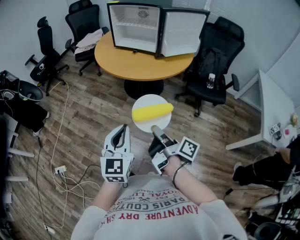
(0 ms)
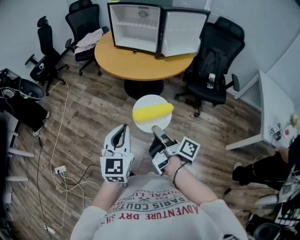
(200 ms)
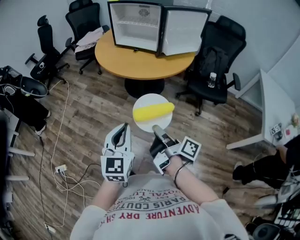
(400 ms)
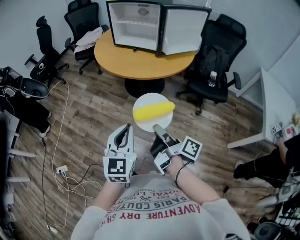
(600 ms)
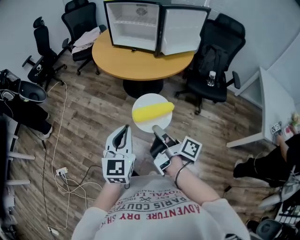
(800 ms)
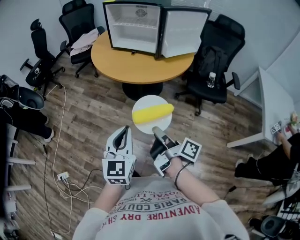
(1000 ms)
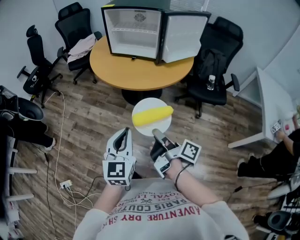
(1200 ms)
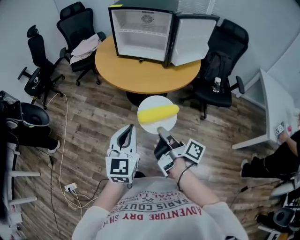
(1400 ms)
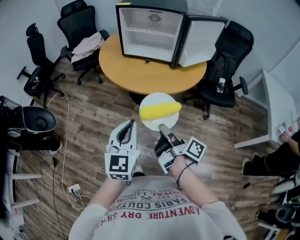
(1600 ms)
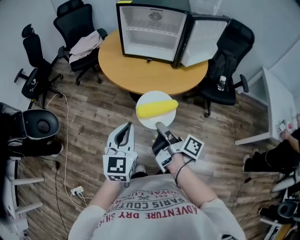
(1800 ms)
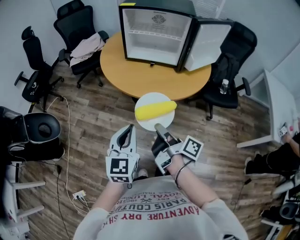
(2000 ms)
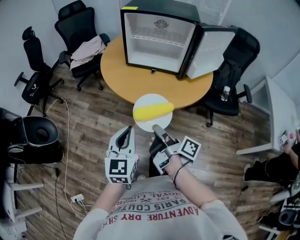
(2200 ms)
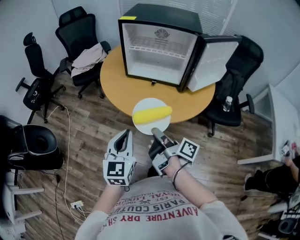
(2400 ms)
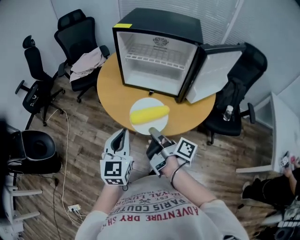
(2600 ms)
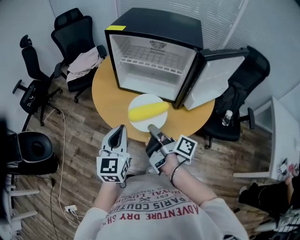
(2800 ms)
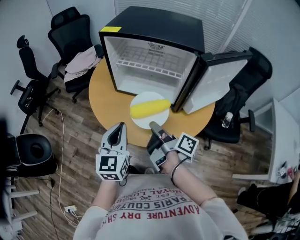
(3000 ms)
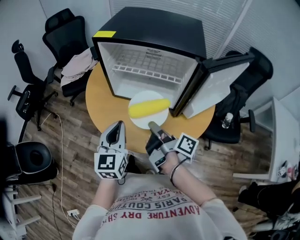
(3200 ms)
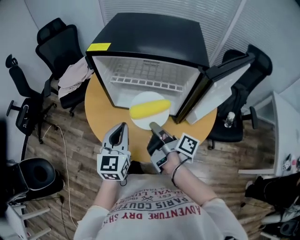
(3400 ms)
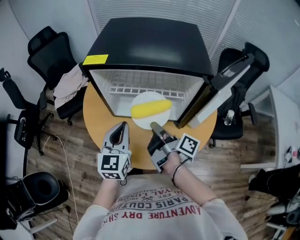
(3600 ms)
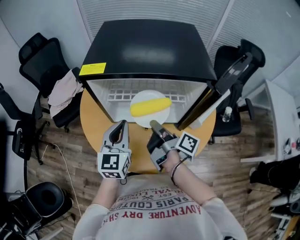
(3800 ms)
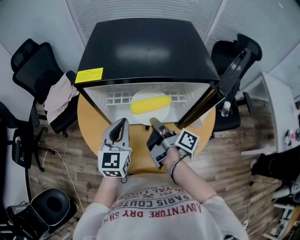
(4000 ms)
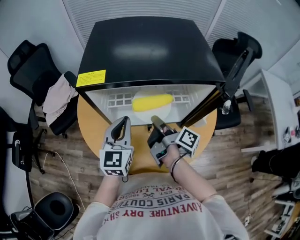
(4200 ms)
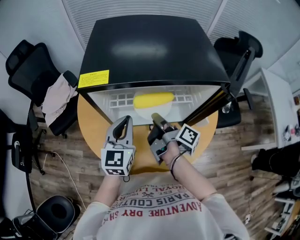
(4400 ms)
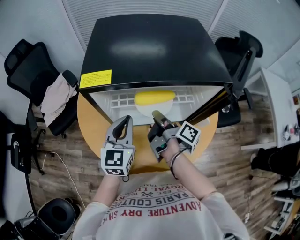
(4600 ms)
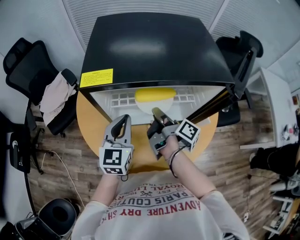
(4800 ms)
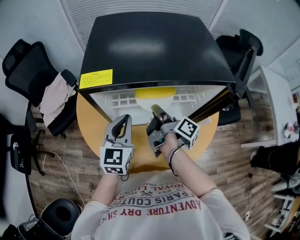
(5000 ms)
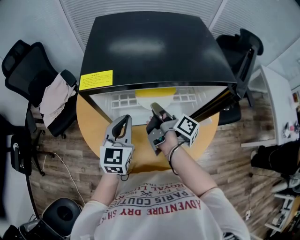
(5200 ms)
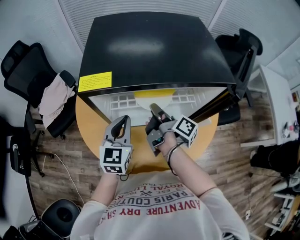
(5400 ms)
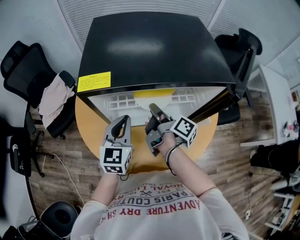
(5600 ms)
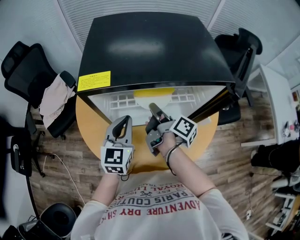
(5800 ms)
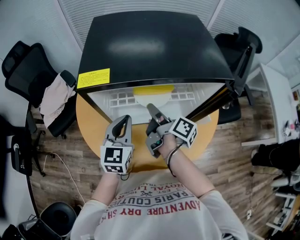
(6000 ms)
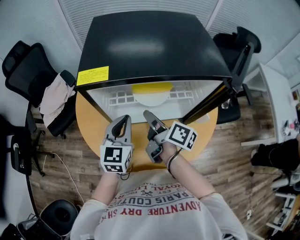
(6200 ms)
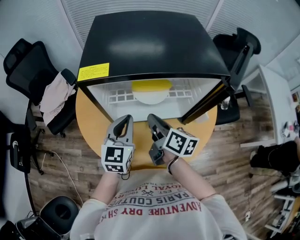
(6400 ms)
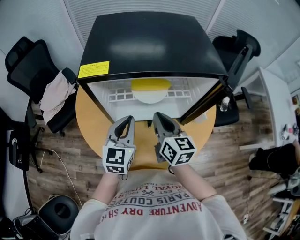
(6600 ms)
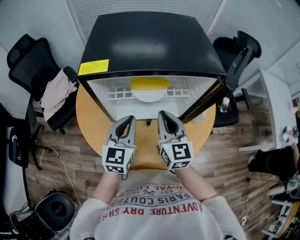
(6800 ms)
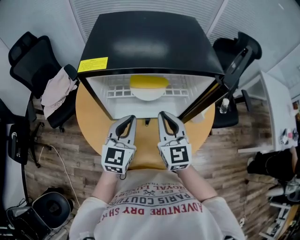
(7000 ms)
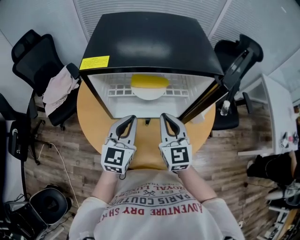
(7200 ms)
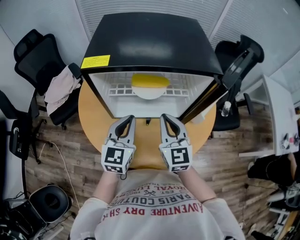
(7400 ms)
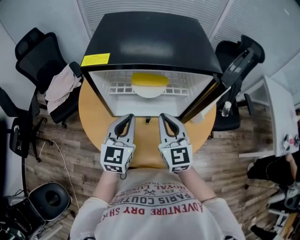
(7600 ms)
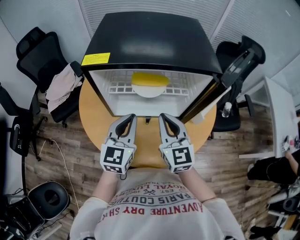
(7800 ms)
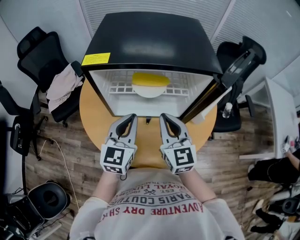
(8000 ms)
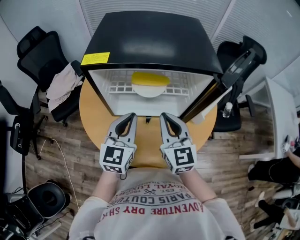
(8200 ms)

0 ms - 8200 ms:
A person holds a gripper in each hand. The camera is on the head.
0 ms - 1600 ms: The left gripper moves approximately 20 cm.
1600 ms - 3200 ms: The left gripper ends up some 40 cm from where it was.
3200 ms - 5000 ms: The left gripper changes place by roughly 20 cm, and swivels some 20 degrees.
6600 ms - 8200 ms: The left gripper changes place by about 5 cm.

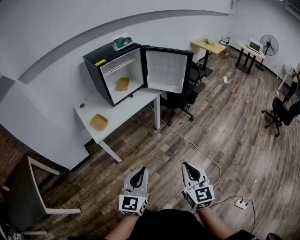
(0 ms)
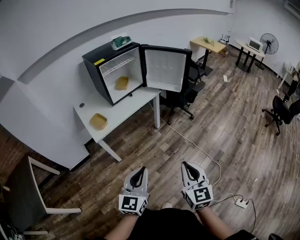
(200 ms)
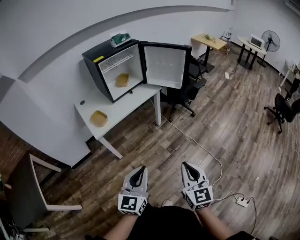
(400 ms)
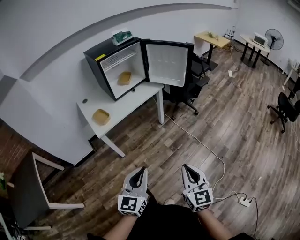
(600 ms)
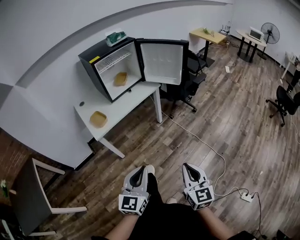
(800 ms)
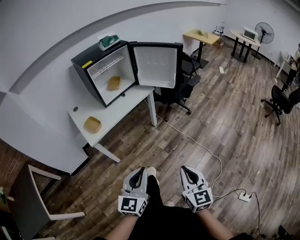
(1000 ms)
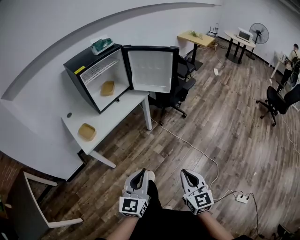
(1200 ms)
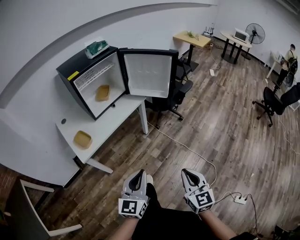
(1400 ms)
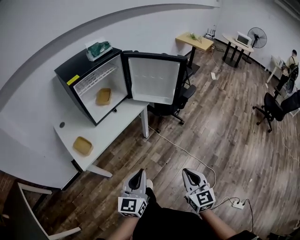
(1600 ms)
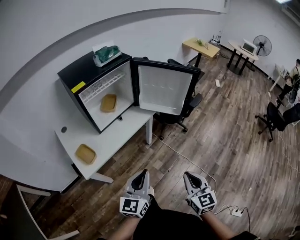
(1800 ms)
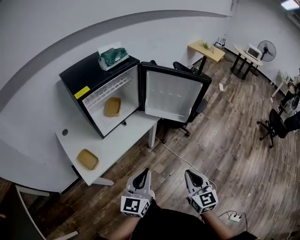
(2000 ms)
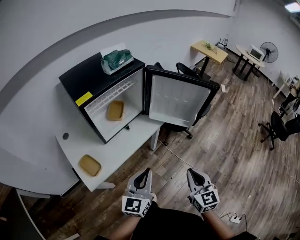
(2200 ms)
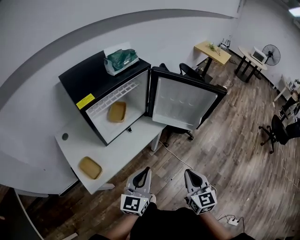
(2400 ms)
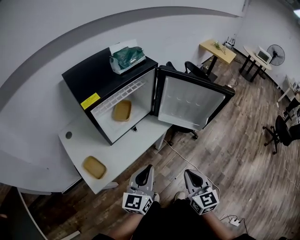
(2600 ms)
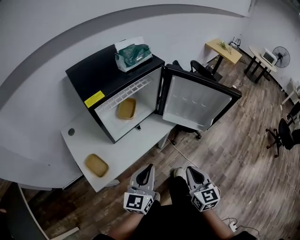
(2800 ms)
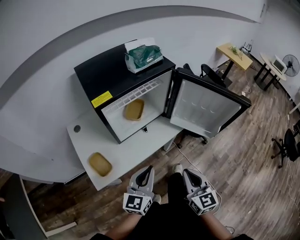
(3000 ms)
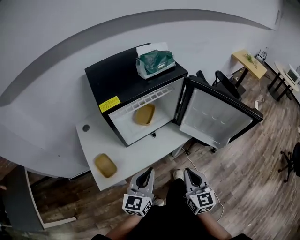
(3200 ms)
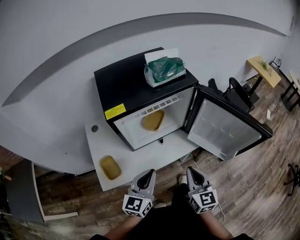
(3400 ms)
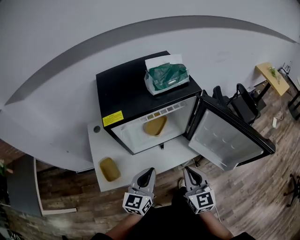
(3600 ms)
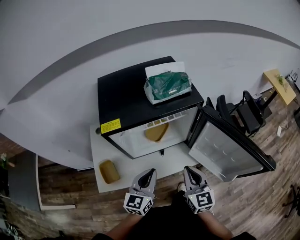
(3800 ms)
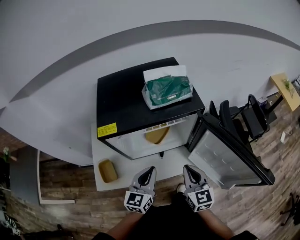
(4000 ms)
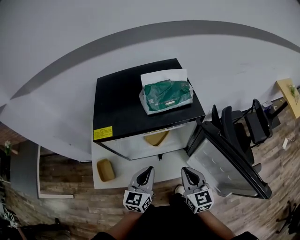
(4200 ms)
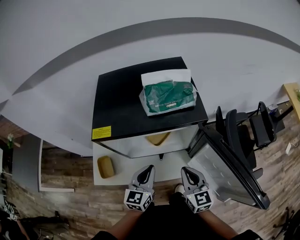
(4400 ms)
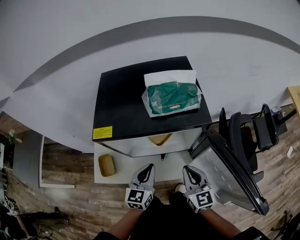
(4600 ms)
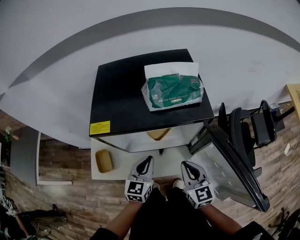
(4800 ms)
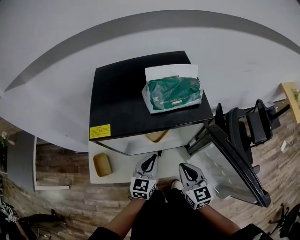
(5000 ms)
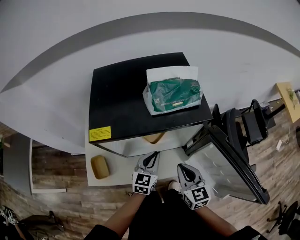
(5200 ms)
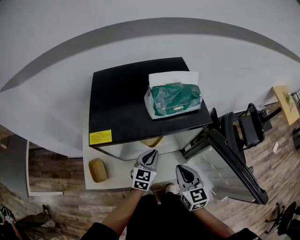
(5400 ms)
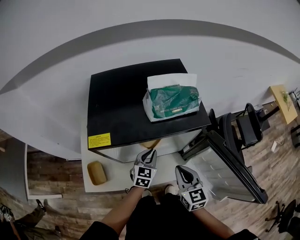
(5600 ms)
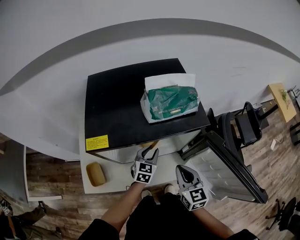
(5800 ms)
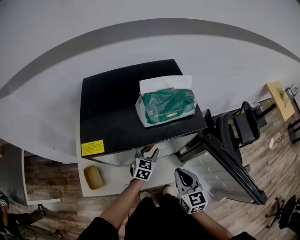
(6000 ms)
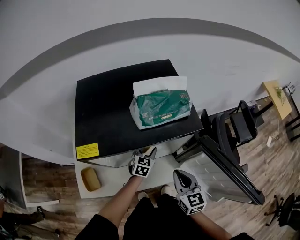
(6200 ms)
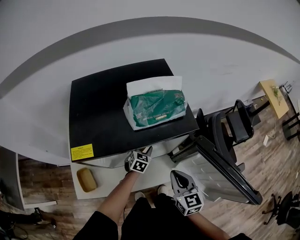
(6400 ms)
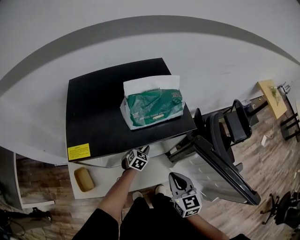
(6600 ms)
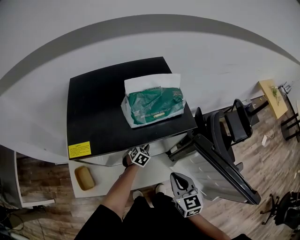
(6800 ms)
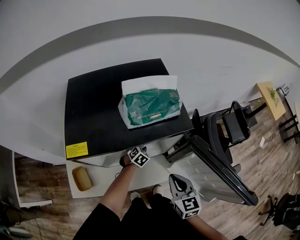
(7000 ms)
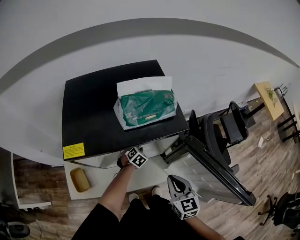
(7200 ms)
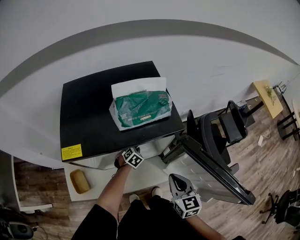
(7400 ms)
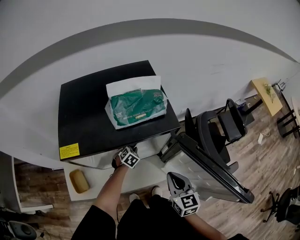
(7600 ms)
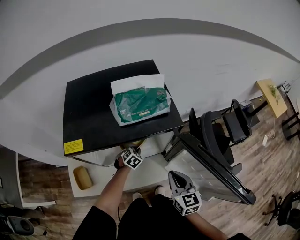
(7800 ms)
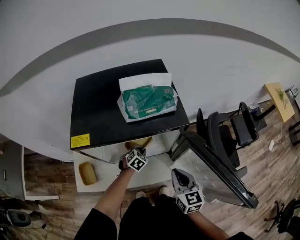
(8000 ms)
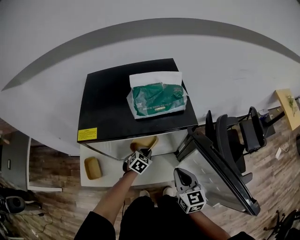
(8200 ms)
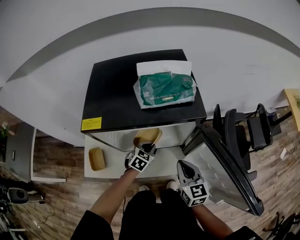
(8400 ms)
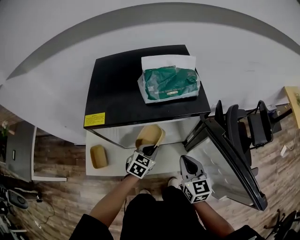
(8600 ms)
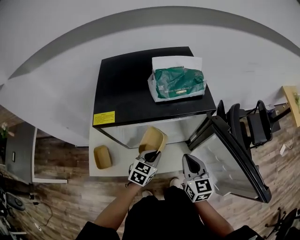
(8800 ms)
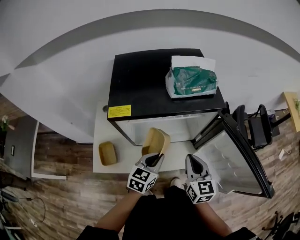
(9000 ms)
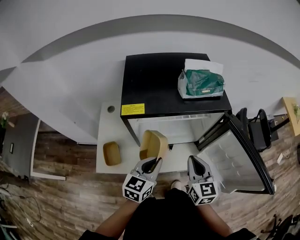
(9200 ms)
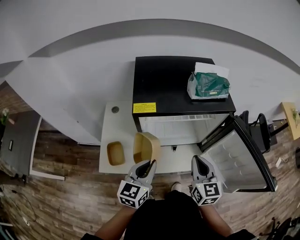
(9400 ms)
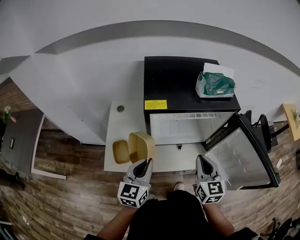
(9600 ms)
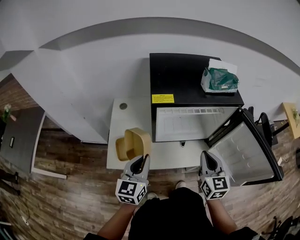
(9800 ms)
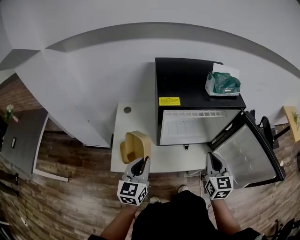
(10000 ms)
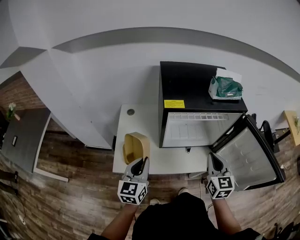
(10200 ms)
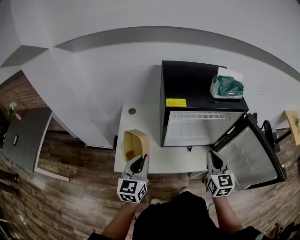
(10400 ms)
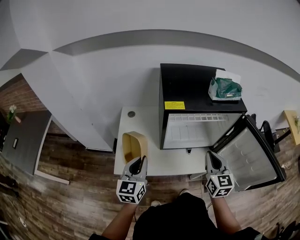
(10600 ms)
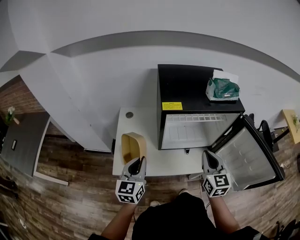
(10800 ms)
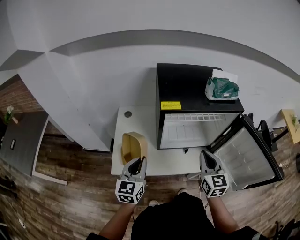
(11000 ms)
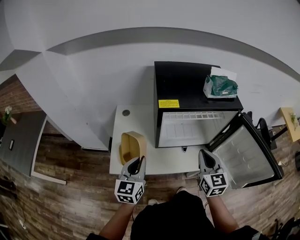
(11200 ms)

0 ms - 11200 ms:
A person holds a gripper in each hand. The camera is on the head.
0 ms - 1600 ms: The grippers both shift forward by some 20 cm.
1600 ms - 3200 ms: The grippers both shift forward and to the left by approximately 35 cm.
3200 ms - 4800 ms: The left gripper ends up some 20 cm from where it was, and rotates roughly 30 degrees. The right gripper changes place by about 25 cm, and rotates some 30 degrees.
4800 ms - 6400 ms: The left gripper moves downward and forward, roughly 25 cm, rotates some 30 degrees, and opens.
6400 ms - 8000 ms: The left gripper closes.
8000 ms - 9600 ms: The left gripper heads upward, backward and to the left, covering some 40 cm, and tilts its fingers some 40 degrees upward, while the right gripper shifts some 15 cm to the left, upward and backward.
9600 ms - 11200 ms: The left gripper goes some 10 cm to the left.

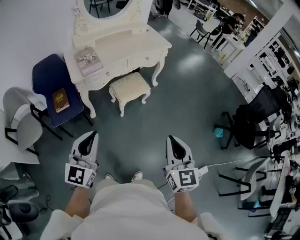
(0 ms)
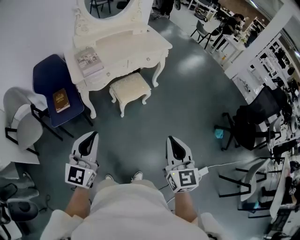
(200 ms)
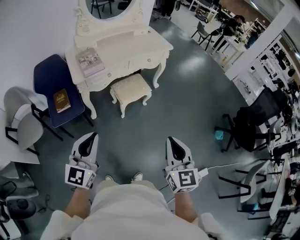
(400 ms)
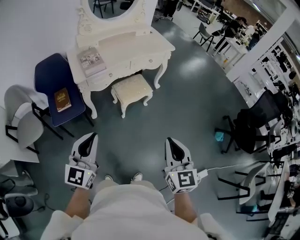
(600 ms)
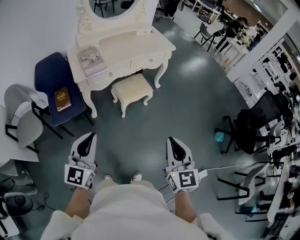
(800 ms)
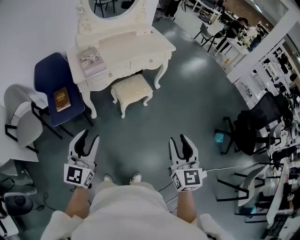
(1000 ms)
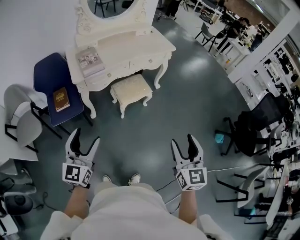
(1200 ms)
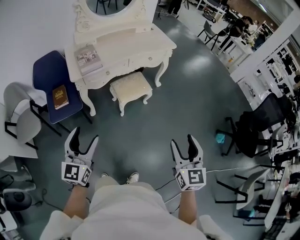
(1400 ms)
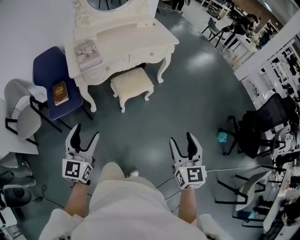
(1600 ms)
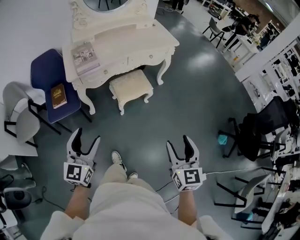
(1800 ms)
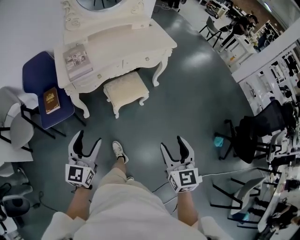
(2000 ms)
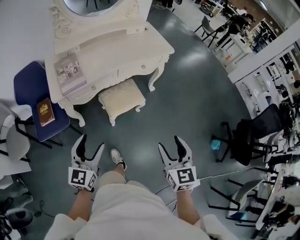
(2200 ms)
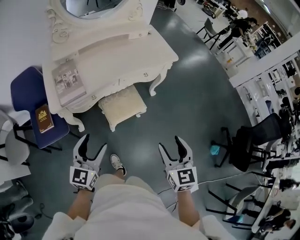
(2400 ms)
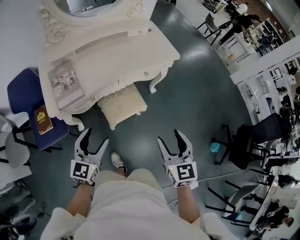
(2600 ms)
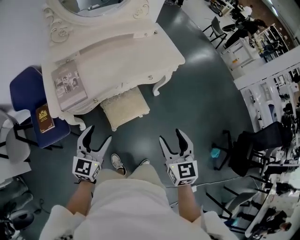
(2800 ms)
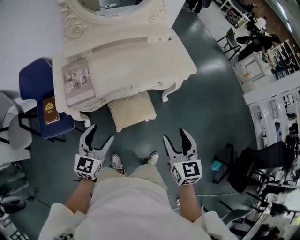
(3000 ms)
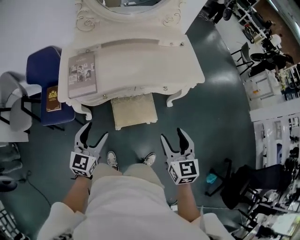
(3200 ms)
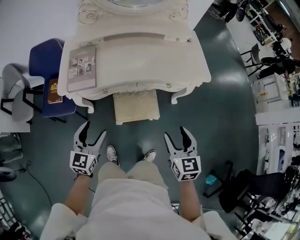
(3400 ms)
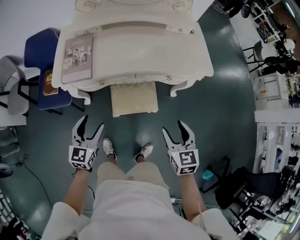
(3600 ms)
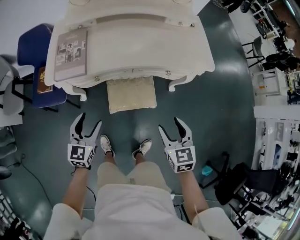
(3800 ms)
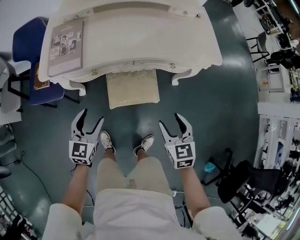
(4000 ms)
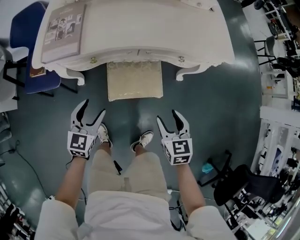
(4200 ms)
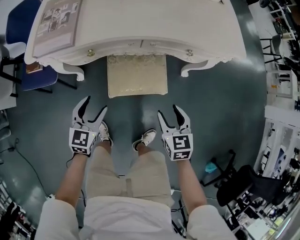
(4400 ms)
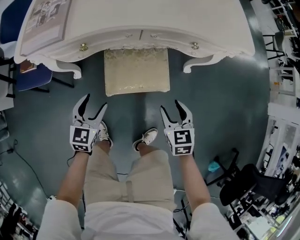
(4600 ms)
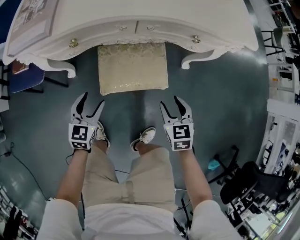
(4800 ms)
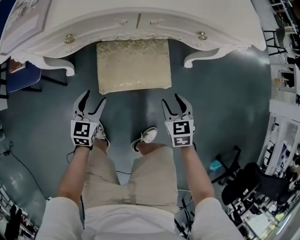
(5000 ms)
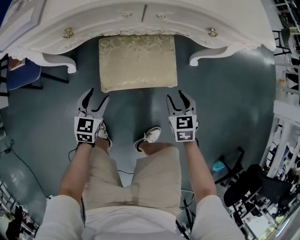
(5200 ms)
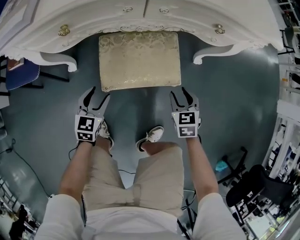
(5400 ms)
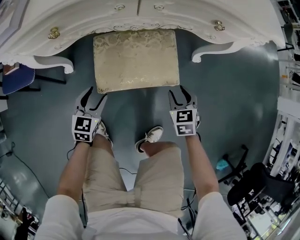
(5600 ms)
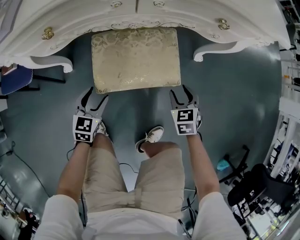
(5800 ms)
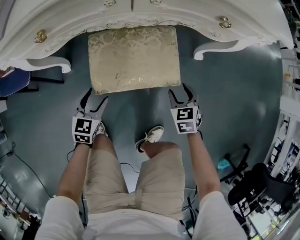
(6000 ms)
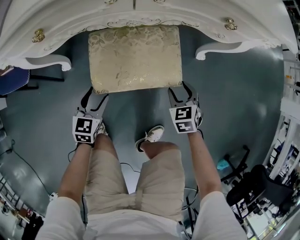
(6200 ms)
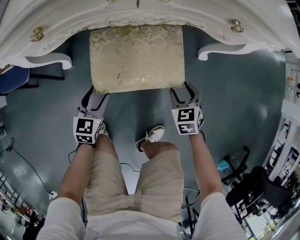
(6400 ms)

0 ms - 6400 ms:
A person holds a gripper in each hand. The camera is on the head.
0 ms - 1600 ms: The left gripper shifts by approximately 5 cm, and opens its fingers, while the right gripper goes about 10 cm to the right and forward, and opens.
1600 ms - 3200 ms: Both grippers move forward, approximately 40 cm. The right gripper rotates approximately 20 degrees.
3200 ms - 4800 ms: The grippers both shift downward by some 40 cm. The right gripper rotates roughly 20 degrees.
4800 ms - 6400 ms: The grippers both shift downward by roughly 15 cm.
